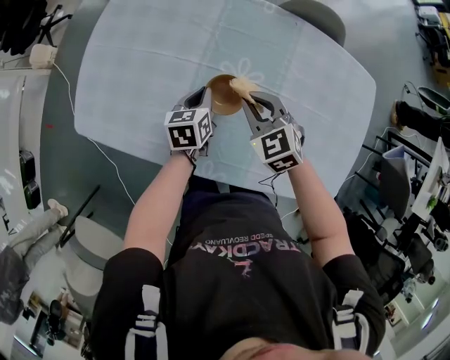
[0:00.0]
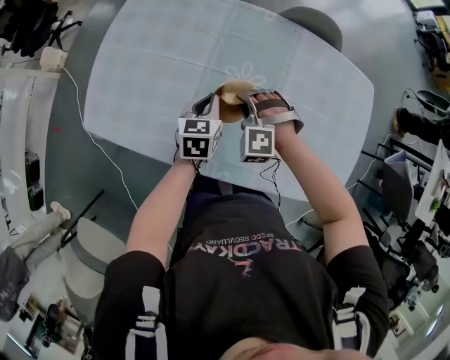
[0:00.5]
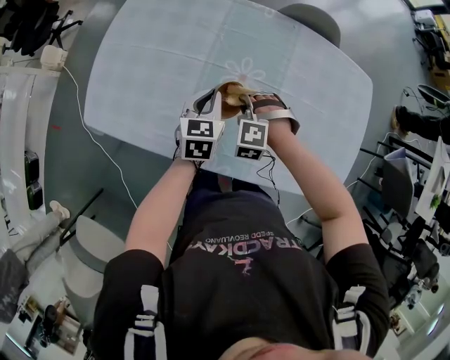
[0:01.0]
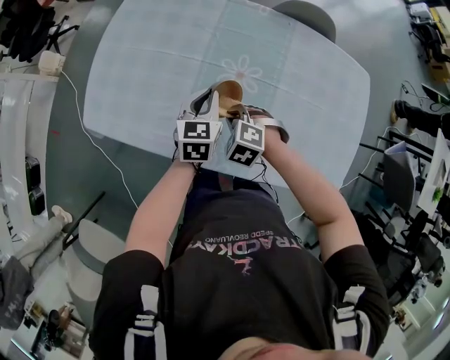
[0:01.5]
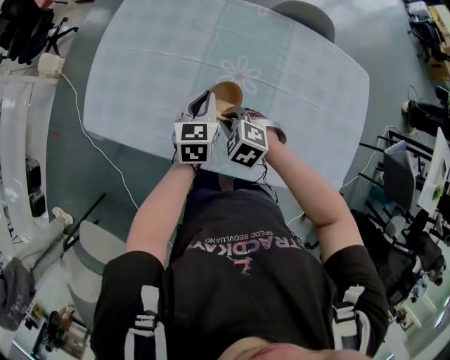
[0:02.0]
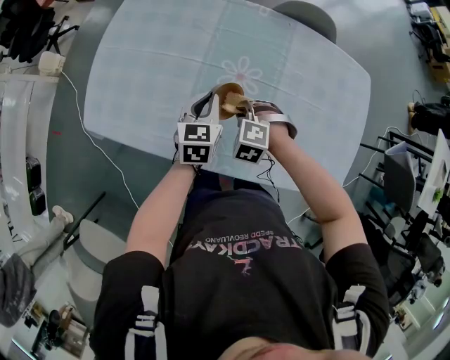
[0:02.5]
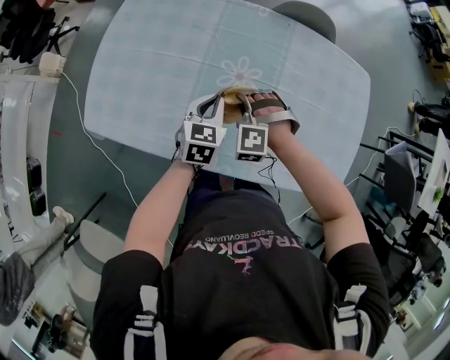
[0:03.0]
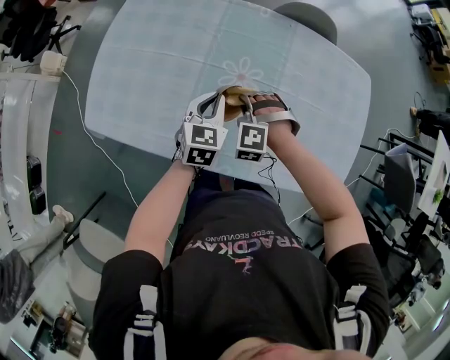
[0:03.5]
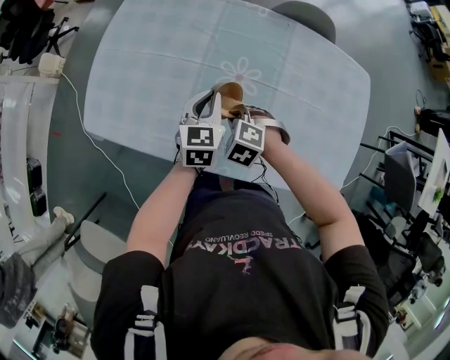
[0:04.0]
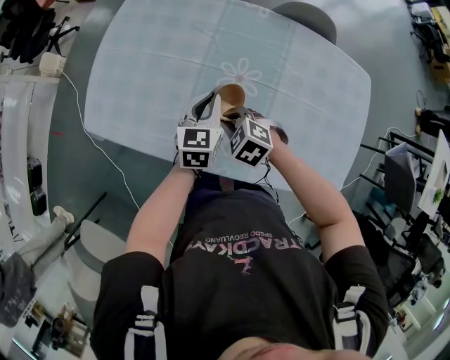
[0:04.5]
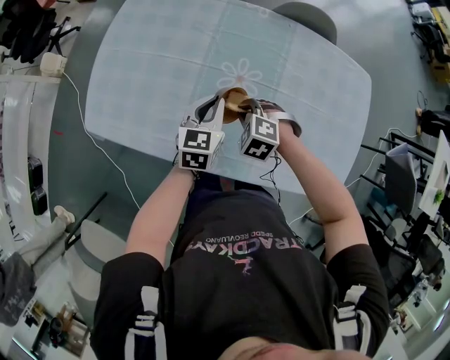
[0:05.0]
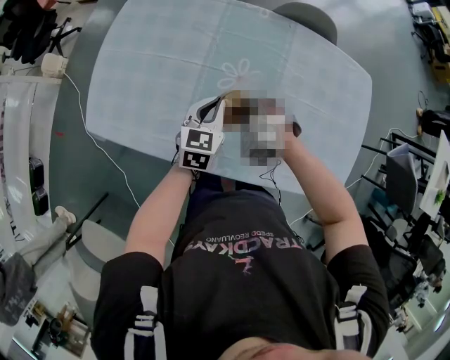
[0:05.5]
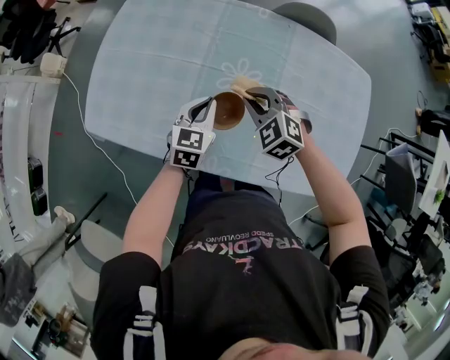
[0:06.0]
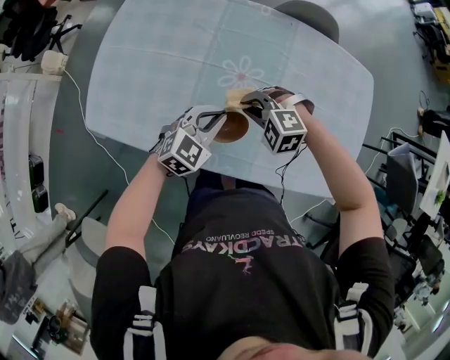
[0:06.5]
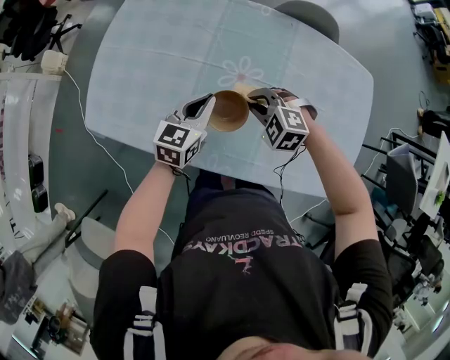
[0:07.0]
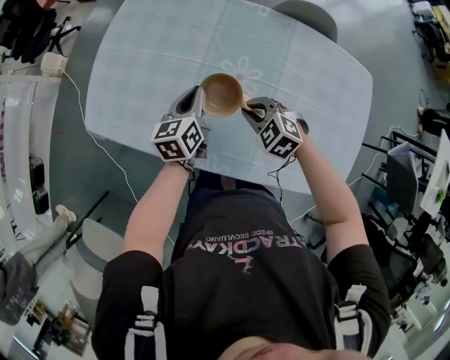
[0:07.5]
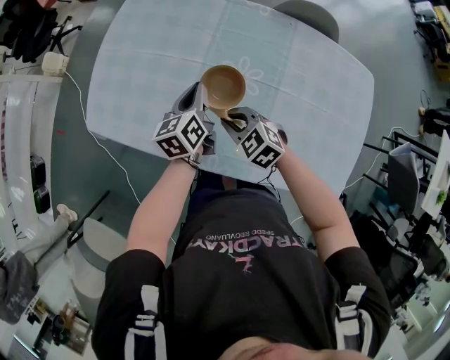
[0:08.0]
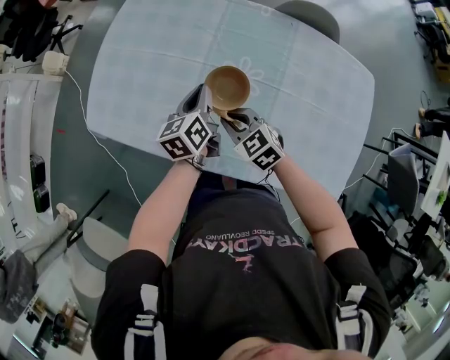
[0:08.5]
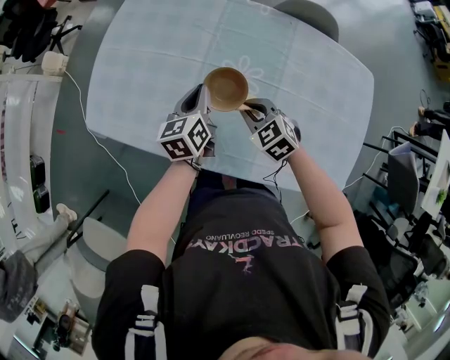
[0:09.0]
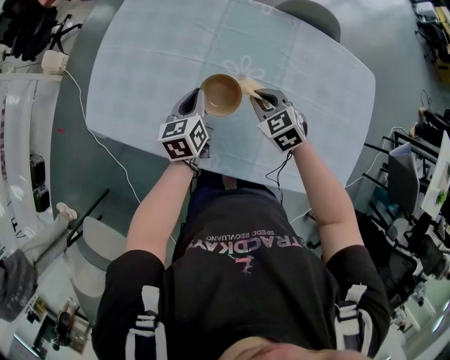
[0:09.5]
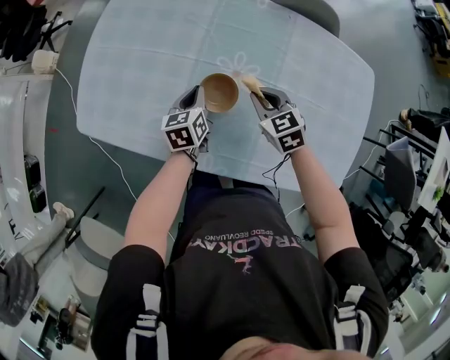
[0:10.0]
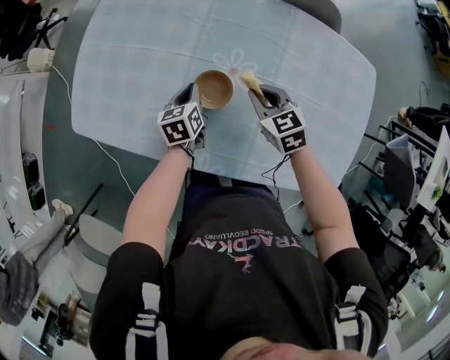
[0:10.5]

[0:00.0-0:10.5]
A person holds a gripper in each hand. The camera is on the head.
0:00.0 to 0:02.0: The right gripper moves backward, to the left and downward, about 10 cm, and turns by roughly 30 degrees. The left gripper moves upward, approximately 5 cm.
0:04.0 to 0:06.5: The right gripper changes its angle by roughly 30 degrees. Meanwhile the left gripper goes about 5 cm backward, and turns by roughly 40 degrees.
0:06.5 to 0:08.5: The right gripper moves to the left, about 5 cm, and rolls clockwise, seen from behind, by approximately 40 degrees, while the left gripper moves forward, roughly 10 cm, and rolls counterclockwise, seen from behind, by roughly 60 degrees.
0:08.5 to 0:10.5: The left gripper travels downward by roughly 10 cm. The right gripper moves to the right and forward, approximately 15 cm.

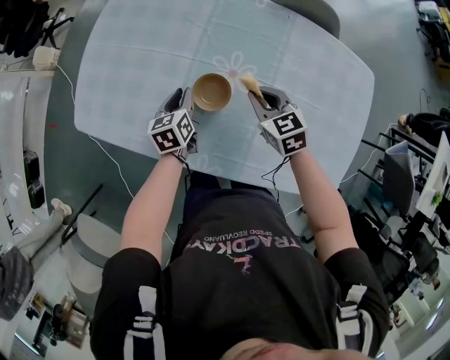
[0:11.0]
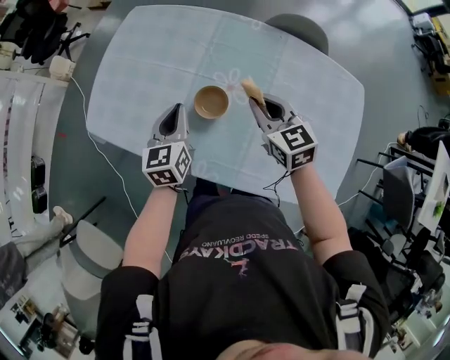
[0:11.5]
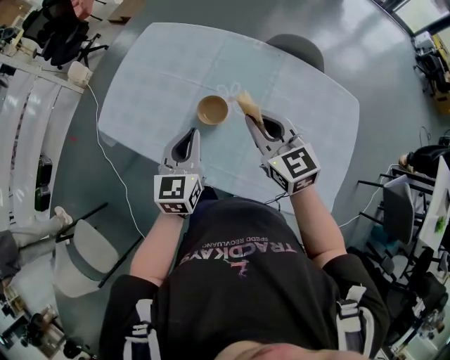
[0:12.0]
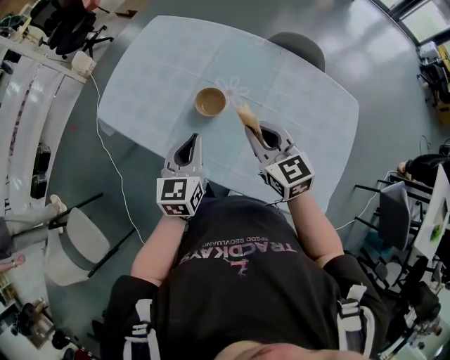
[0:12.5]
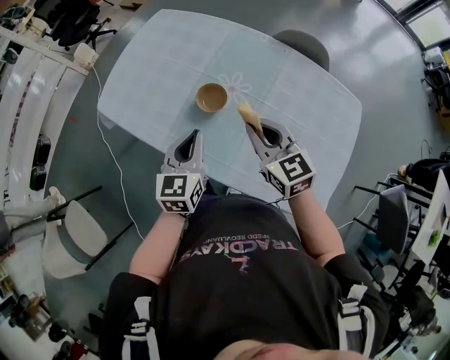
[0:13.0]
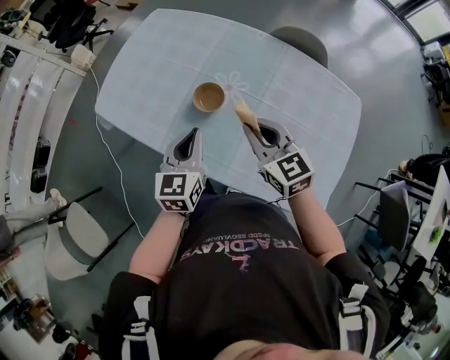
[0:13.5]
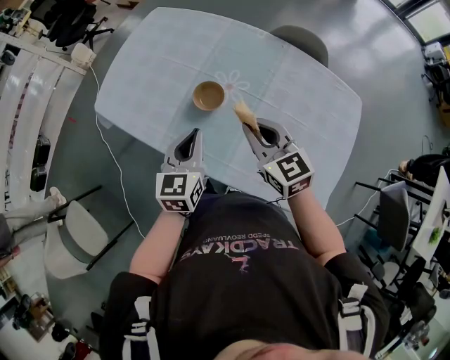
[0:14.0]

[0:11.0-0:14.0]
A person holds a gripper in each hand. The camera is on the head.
0:11.0 to 0:12.5: Both grippers move upward and backward, approximately 25 cm. The right gripper turns by about 20 degrees; the left gripper swivels approximately 30 degrees, and closes.
0:12.5 to 0:14.0: There are only small adjustments of the grippers.

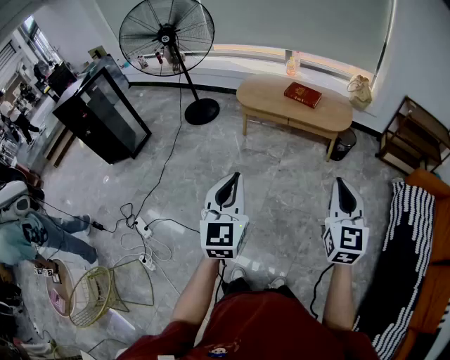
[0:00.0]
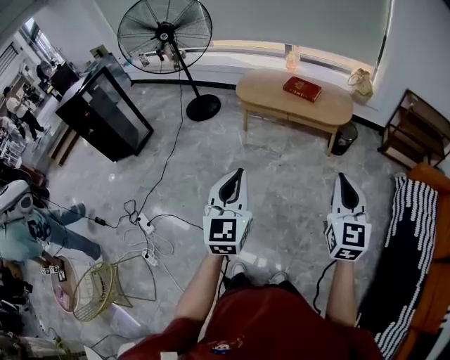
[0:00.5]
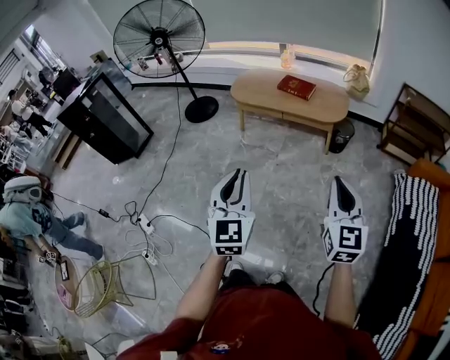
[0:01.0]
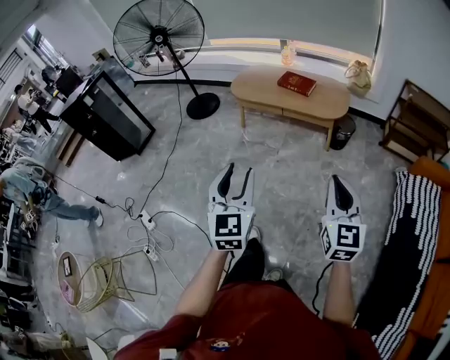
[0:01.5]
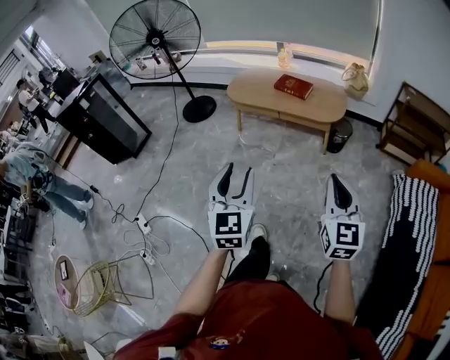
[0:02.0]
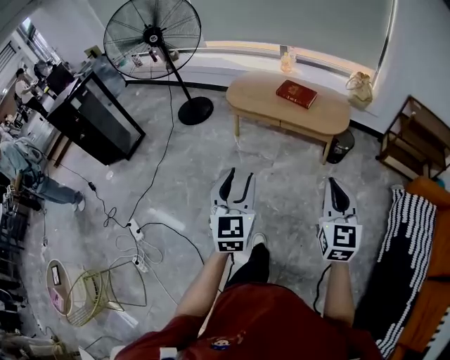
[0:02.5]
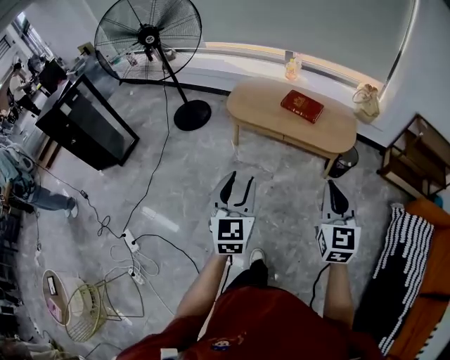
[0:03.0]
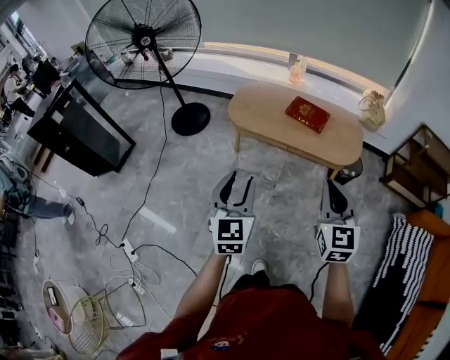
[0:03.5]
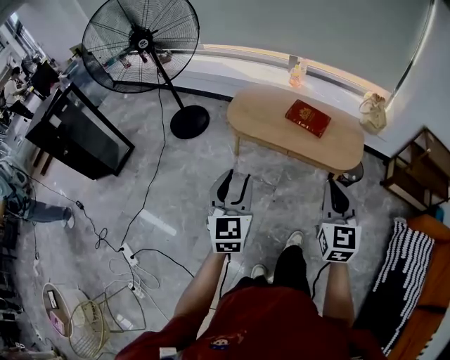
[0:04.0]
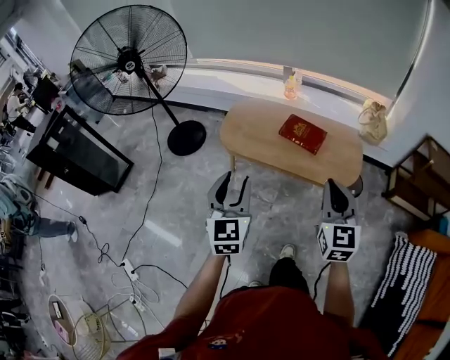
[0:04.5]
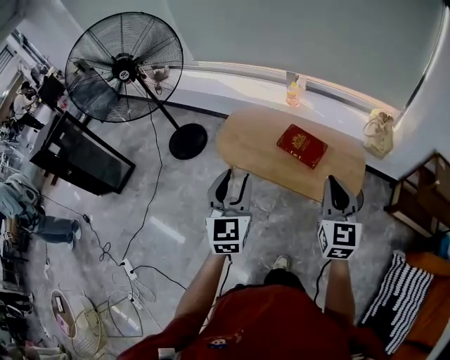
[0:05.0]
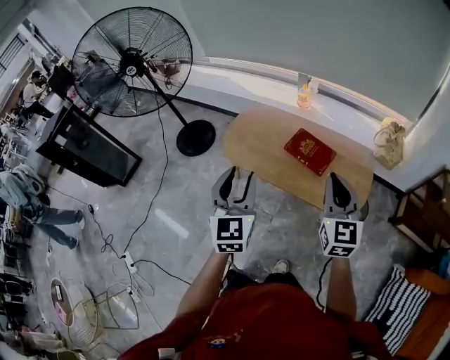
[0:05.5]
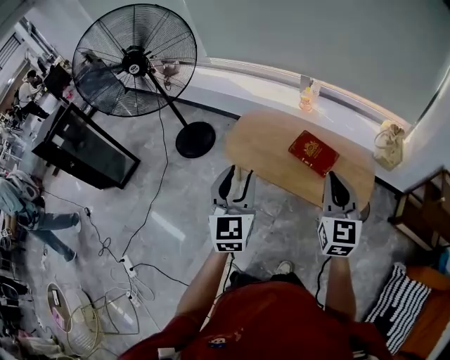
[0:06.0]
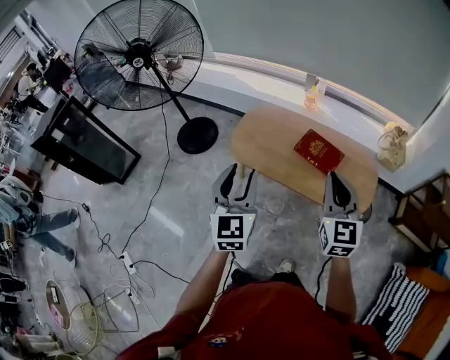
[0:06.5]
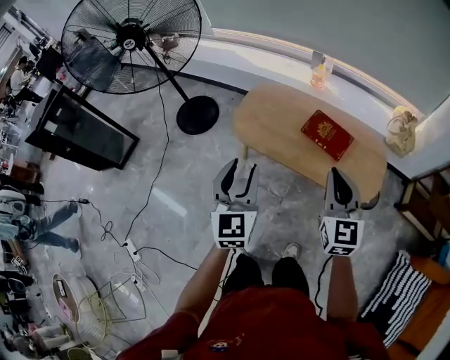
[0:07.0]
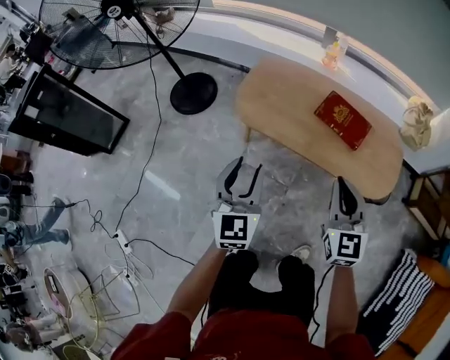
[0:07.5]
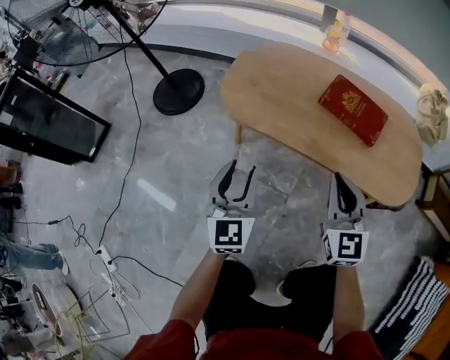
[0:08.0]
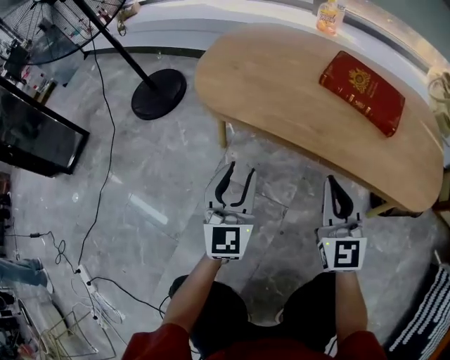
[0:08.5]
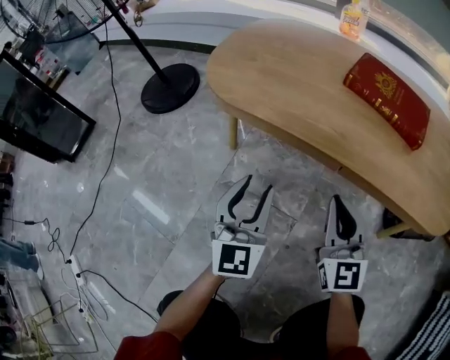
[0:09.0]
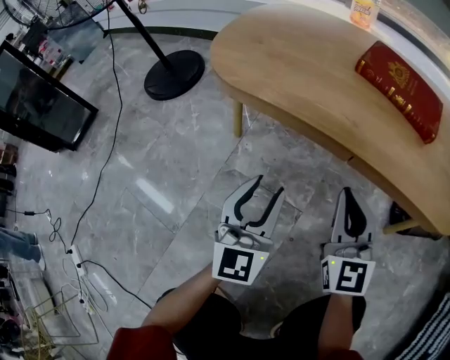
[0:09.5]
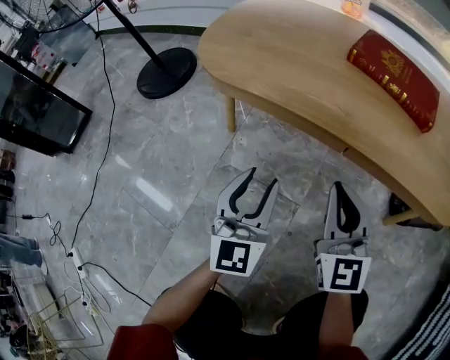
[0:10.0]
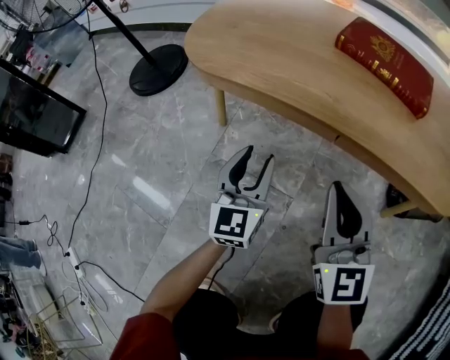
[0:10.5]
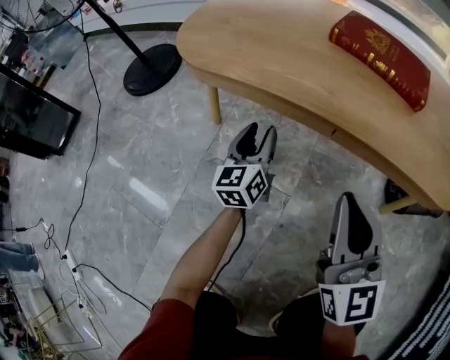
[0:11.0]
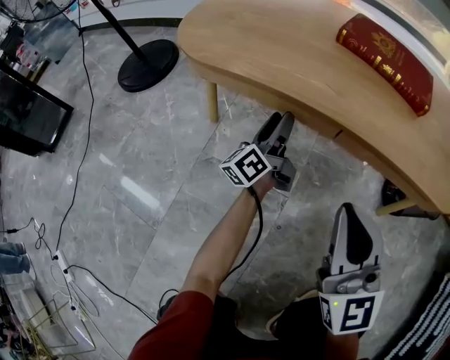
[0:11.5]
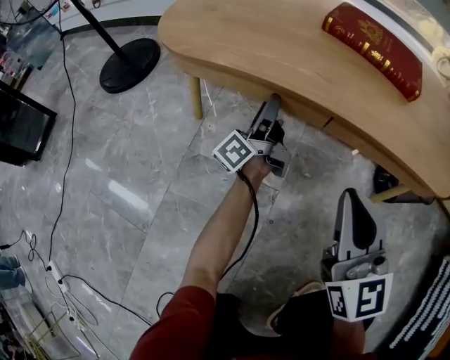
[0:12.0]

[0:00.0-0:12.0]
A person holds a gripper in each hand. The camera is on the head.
0:00.0 to 0:02.0: Both grippers travel together to the right, roughly 15 cm. The left gripper opens up.
0:02.0 to 0:04.0: The two grippers travel together, forward, some 40 cm.
0:04.0 to 0:06.0: Both grippers move forward, roughly 25 cm.
0:06.0 to 0:08.0: The grippers both shift downward by approximately 35 cm.
0:08.0 to 0:10.0: The two grippers go about 25 cm downward.
0:10.0 to 0:12.0: The right gripper is displaced backward by approximately 5 cm. The left gripper heads forward and downward, covering about 20 cm, and twists roughly 90 degrees counterclockwise, seen from behind.

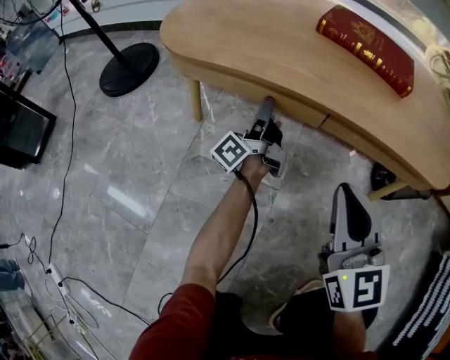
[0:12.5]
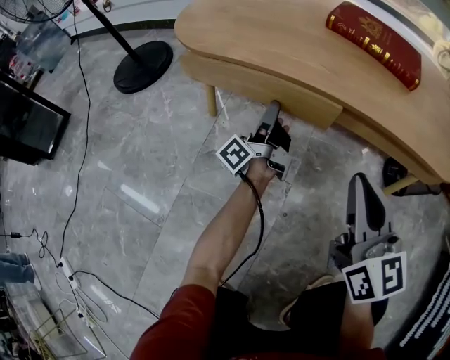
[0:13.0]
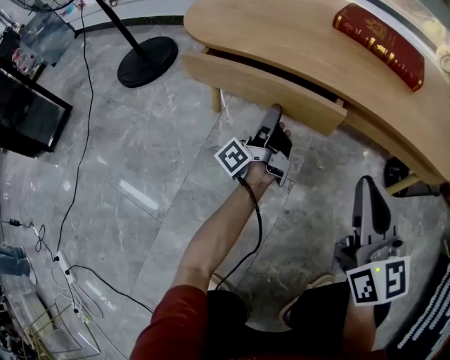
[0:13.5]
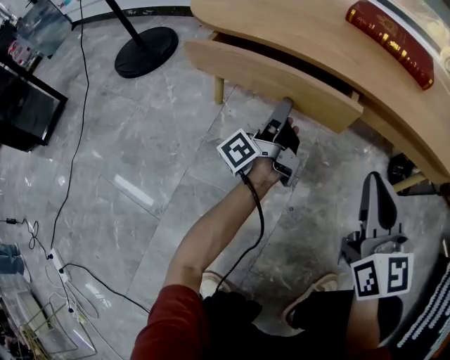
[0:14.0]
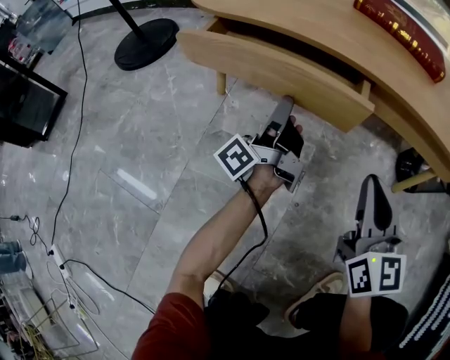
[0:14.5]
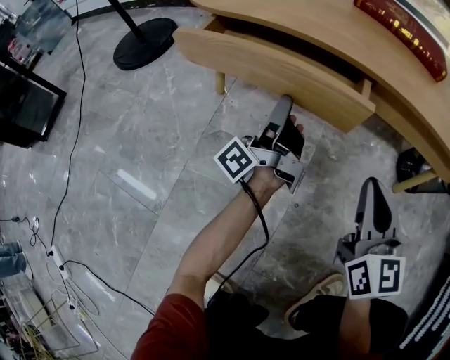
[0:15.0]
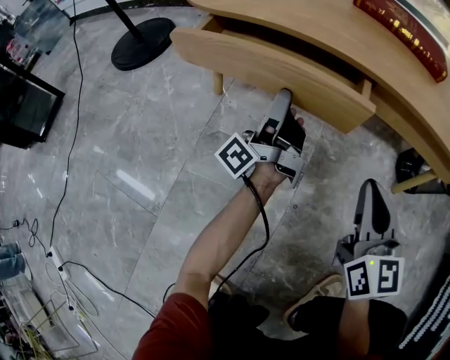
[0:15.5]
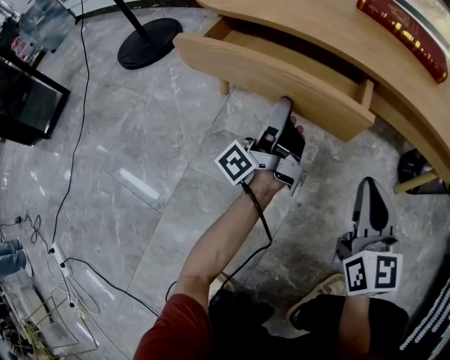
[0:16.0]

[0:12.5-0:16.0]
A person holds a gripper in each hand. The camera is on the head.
0:12.5 to 0:14.5: The left gripper heads backward, covering about 10 cm; the right gripper moves downward, some 5 cm.
0:14.5 to 0:16.0: The grippers stay close to where they were, moving slightly.
